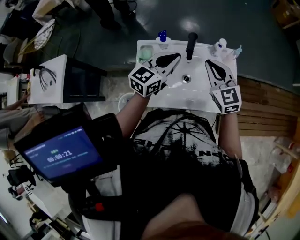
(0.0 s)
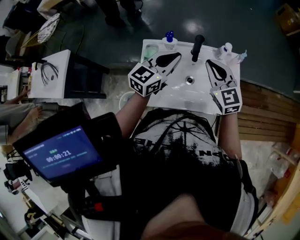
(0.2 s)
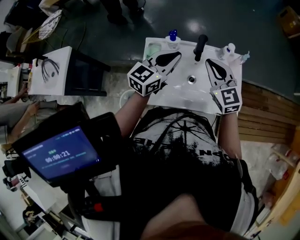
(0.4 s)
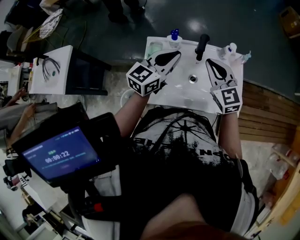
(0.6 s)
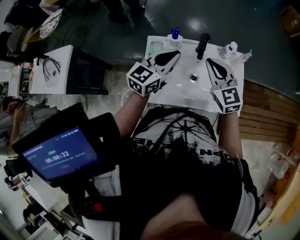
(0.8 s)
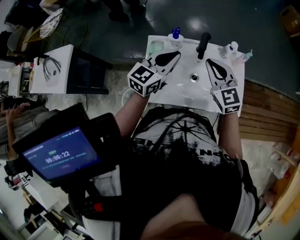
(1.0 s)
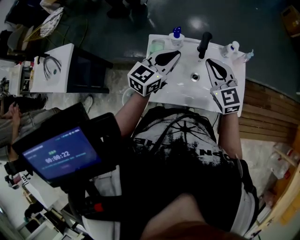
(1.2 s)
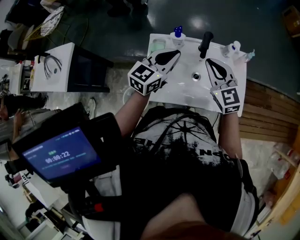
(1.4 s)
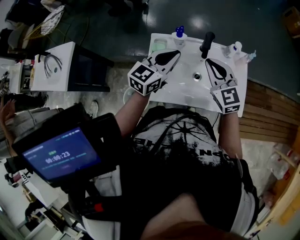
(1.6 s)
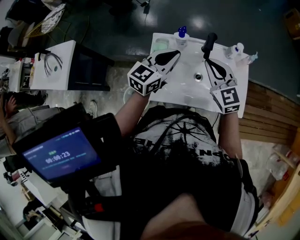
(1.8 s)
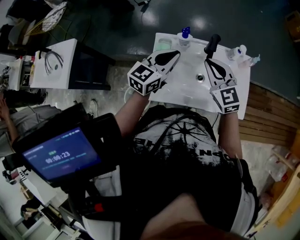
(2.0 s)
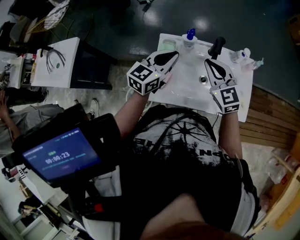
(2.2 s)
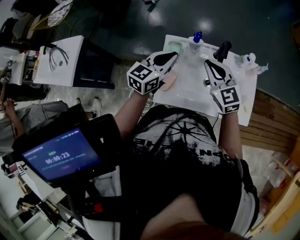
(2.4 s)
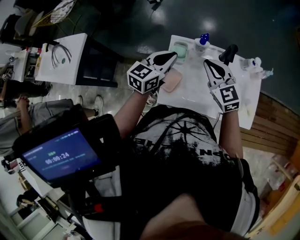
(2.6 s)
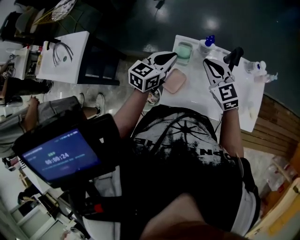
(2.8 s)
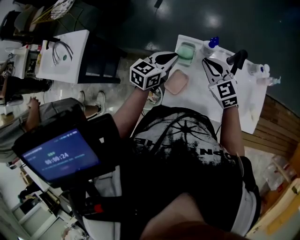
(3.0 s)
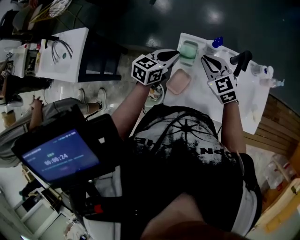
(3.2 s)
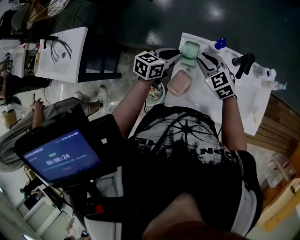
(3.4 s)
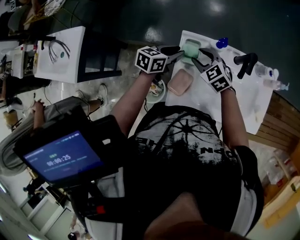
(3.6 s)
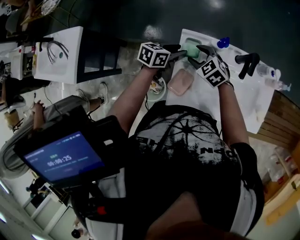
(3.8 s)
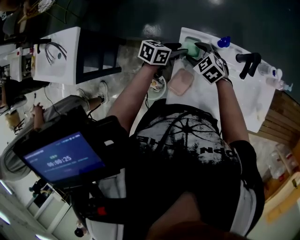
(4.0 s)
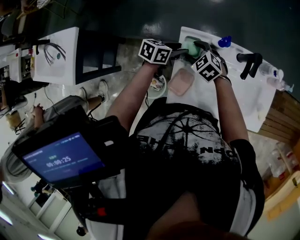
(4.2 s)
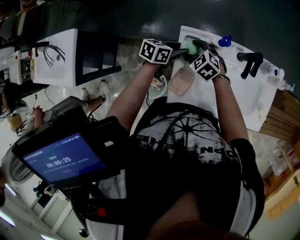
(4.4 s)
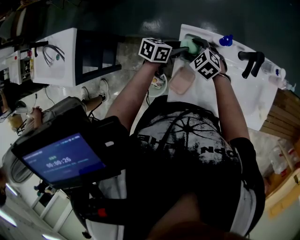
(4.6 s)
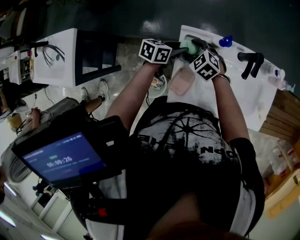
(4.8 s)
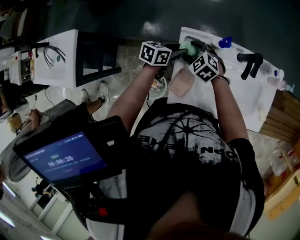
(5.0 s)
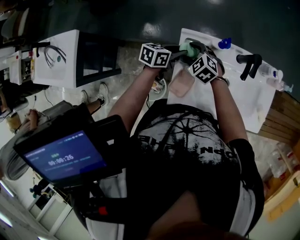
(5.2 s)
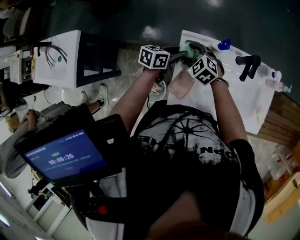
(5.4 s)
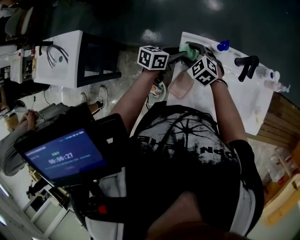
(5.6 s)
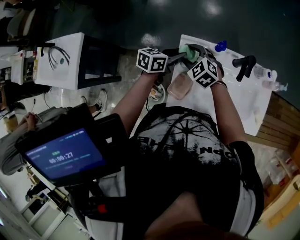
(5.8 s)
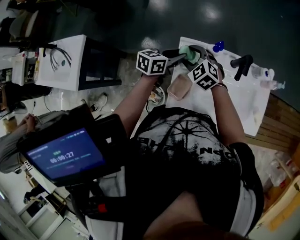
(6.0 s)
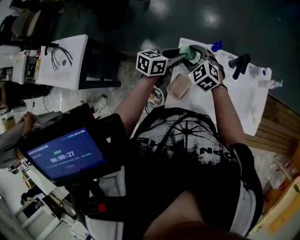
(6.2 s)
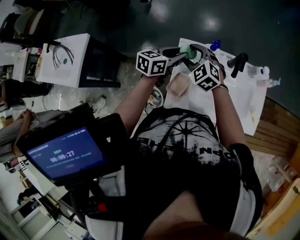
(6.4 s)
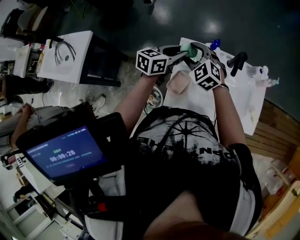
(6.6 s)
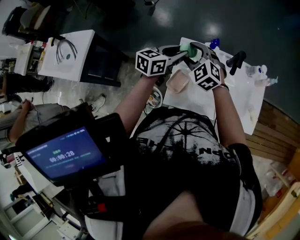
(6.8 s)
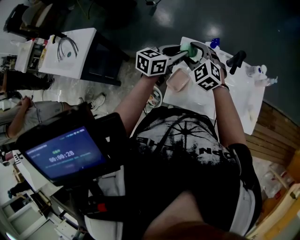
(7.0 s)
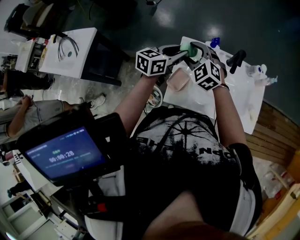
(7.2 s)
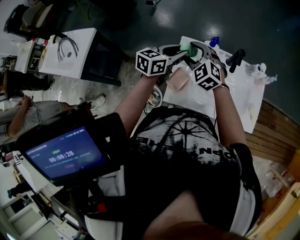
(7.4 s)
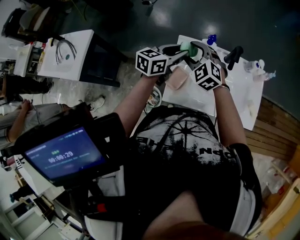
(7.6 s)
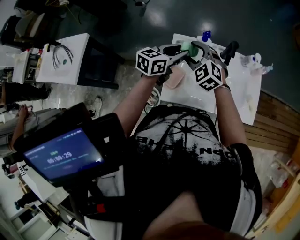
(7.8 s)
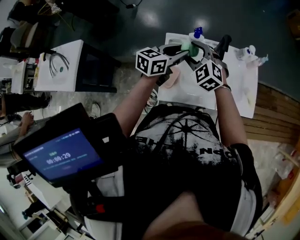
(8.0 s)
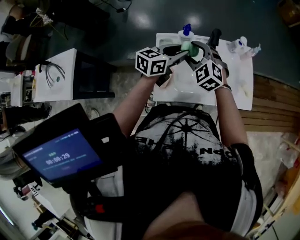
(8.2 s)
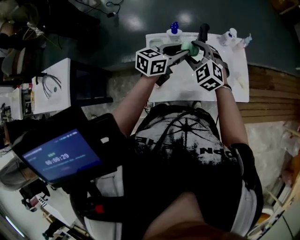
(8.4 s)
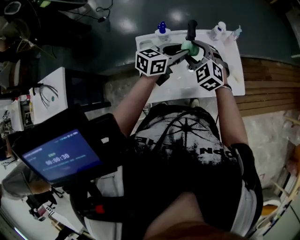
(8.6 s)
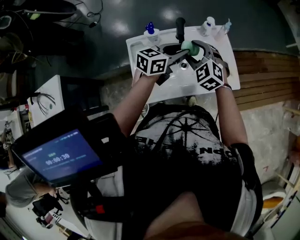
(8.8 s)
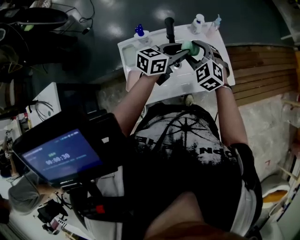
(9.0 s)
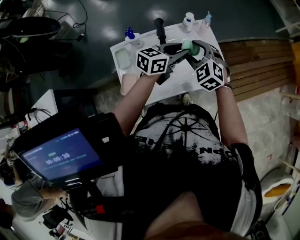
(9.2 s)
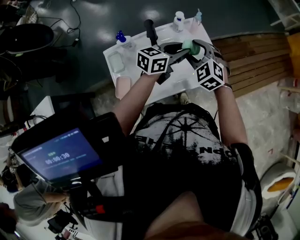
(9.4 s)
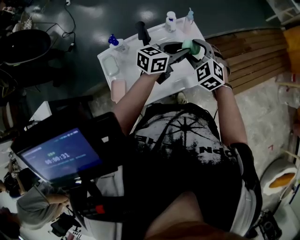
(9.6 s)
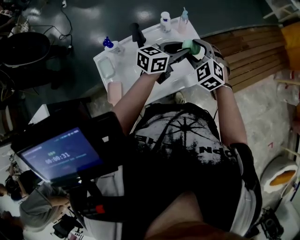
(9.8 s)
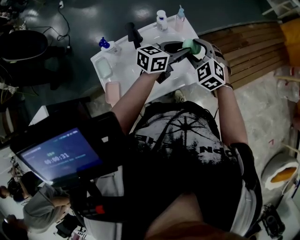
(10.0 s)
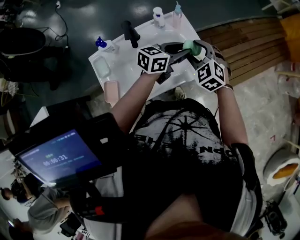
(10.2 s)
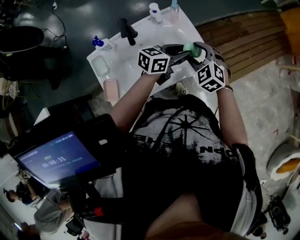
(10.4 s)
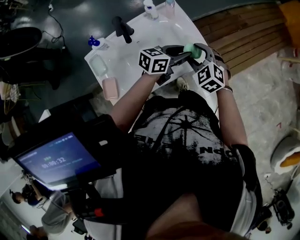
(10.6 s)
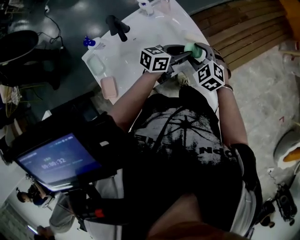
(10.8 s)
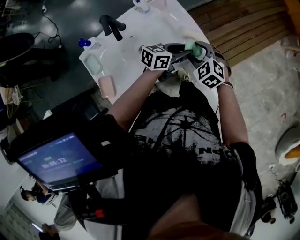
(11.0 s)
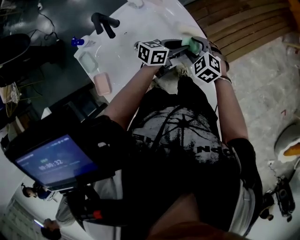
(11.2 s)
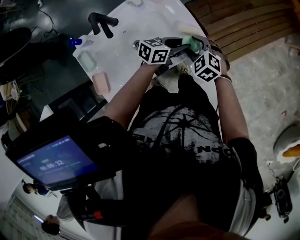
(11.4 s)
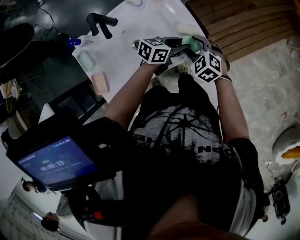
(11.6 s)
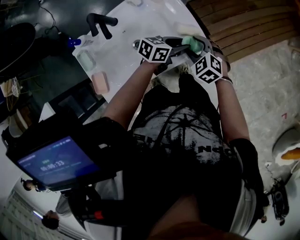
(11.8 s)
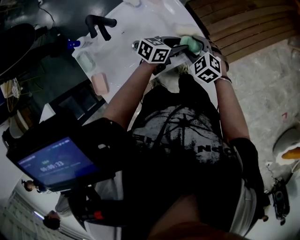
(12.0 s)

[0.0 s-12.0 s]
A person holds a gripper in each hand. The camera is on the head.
0.0 to 1.6 s: Both grippers travel together to the left, about 5 cm.
1.6 to 3.0 s: The grippers both shift to the left and downward by some 15 cm.
3.0 to 4.4 s: The left gripper travels downward and forward by some 15 cm, swivels some 30 degrees, and opens its fingers, while the right gripper travels downward and to the left by roughly 20 cm, changes its angle by about 30 degrees, and opens.
4.4 to 6.0 s: Both grippers travel together upward, about 10 cm.
6.0 to 7.6 s: Both grippers travel together upward and backward, approximately 10 cm.
7.6 to 9.0 s: The right gripper shifts by about 25 cm, and swivels some 30 degrees, while the left gripper shifts by roughly 25 cm, and changes its angle by some 30 degrees.
9.0 to 10.4 s: The grippers both shift to the right by approximately 15 cm.
10.4 to 12.0 s: The two grippers go about 15 cm downward and to the right.

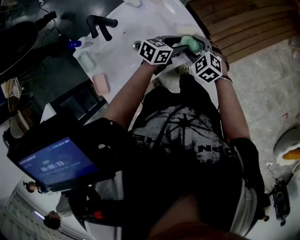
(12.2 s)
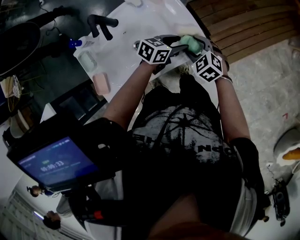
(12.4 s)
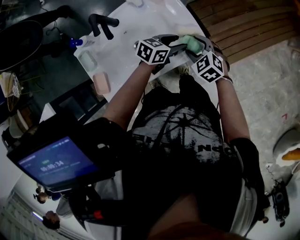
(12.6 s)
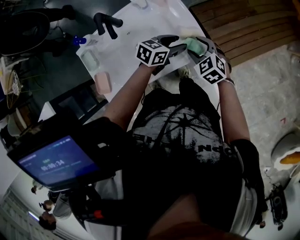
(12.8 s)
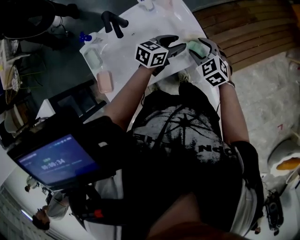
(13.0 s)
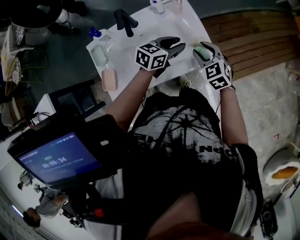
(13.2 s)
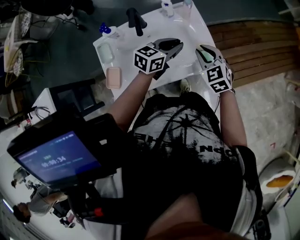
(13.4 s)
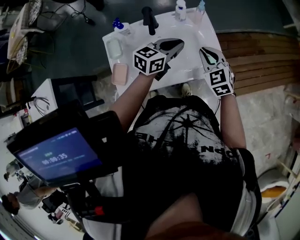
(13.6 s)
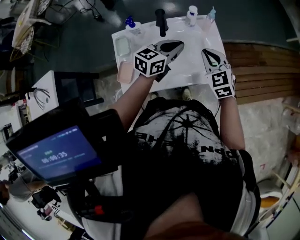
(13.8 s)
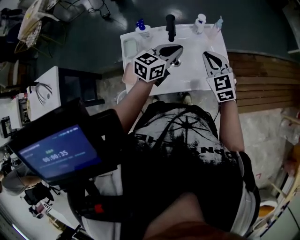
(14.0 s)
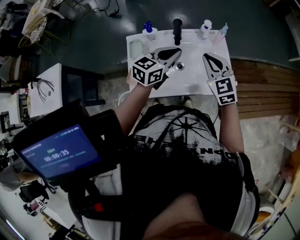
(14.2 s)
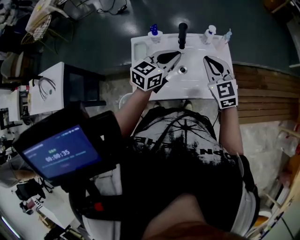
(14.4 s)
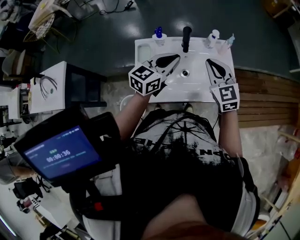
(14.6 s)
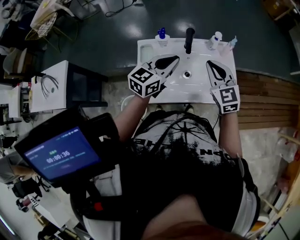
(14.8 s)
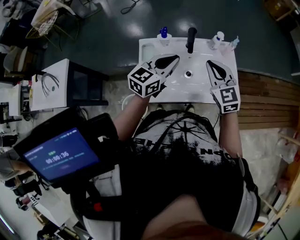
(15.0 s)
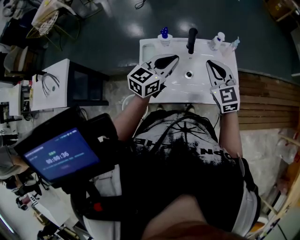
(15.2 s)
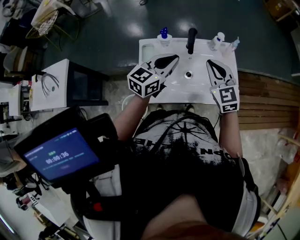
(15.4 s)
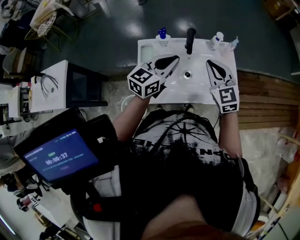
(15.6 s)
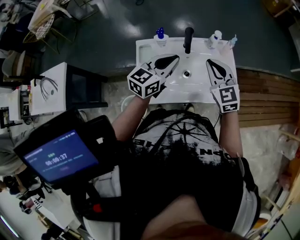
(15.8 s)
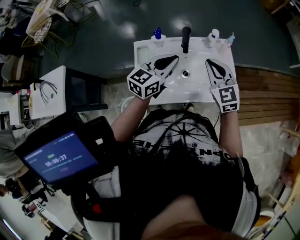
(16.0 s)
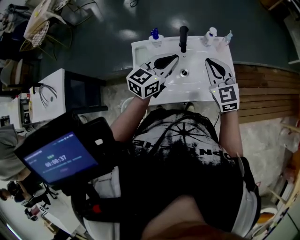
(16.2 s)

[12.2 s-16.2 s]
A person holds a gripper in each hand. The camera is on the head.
12.2 to 13.6 s: The right gripper moves upward and to the left, roughly 15 cm, and closes up, while the left gripper moves to the left and upward, roughly 20 cm, changes its angle by roughly 30 degrees, and closes.
13.6 to 14.8 s: Both grippers travel together to the left and upward, some 15 cm. The left gripper swivels approximately 20 degrees.
14.8 to 16.2 s: The grippers move only a little.

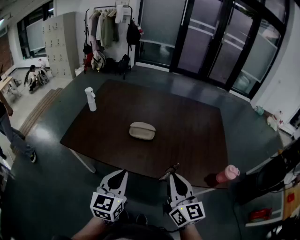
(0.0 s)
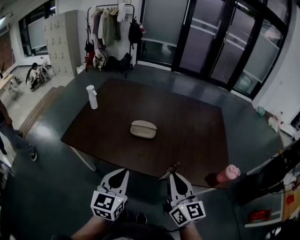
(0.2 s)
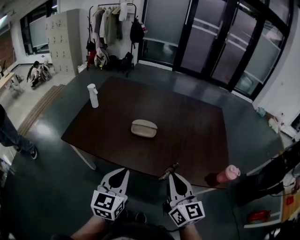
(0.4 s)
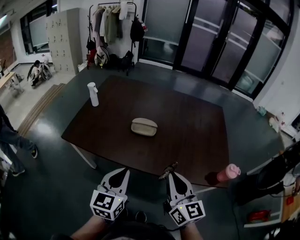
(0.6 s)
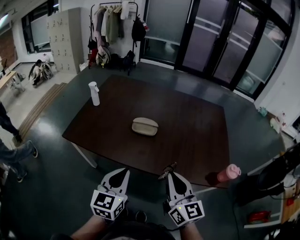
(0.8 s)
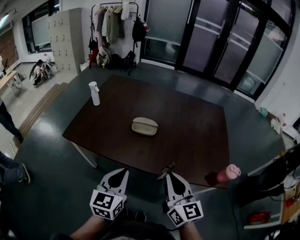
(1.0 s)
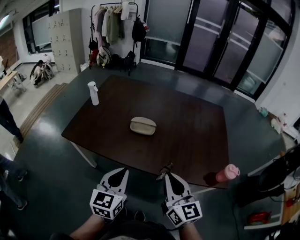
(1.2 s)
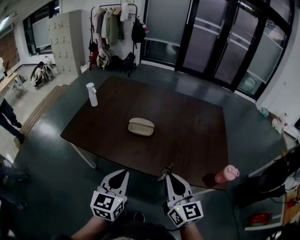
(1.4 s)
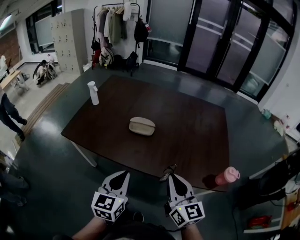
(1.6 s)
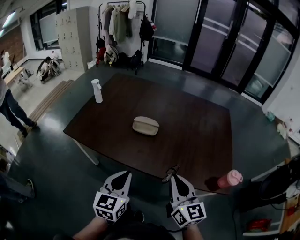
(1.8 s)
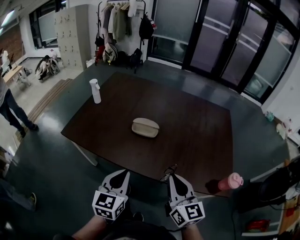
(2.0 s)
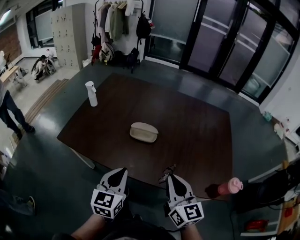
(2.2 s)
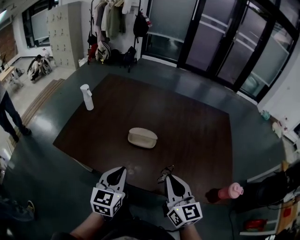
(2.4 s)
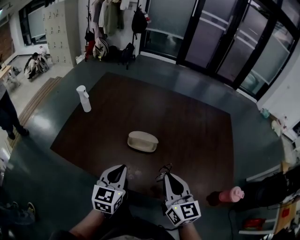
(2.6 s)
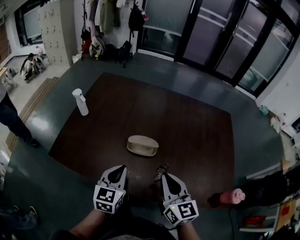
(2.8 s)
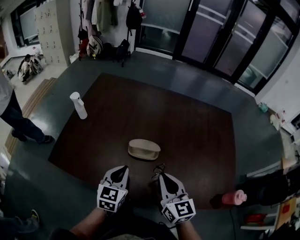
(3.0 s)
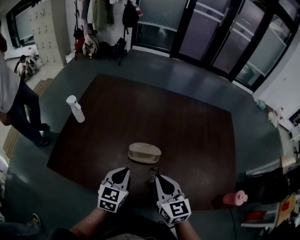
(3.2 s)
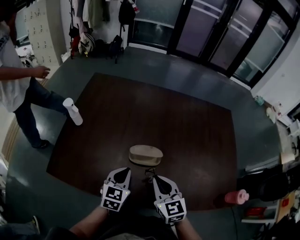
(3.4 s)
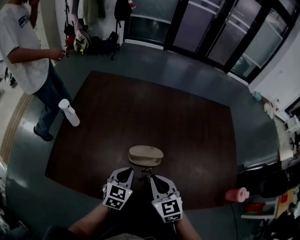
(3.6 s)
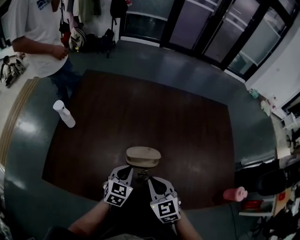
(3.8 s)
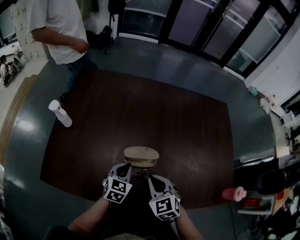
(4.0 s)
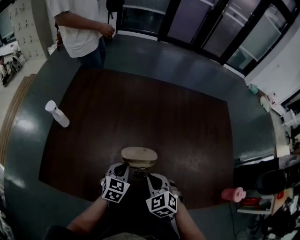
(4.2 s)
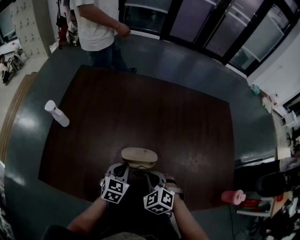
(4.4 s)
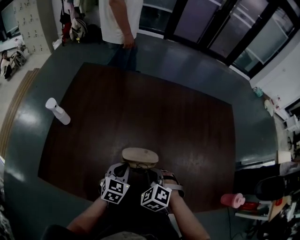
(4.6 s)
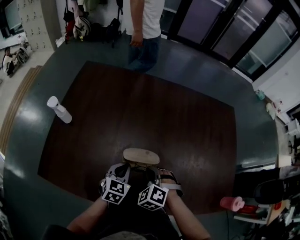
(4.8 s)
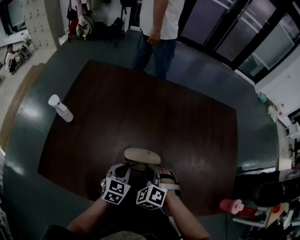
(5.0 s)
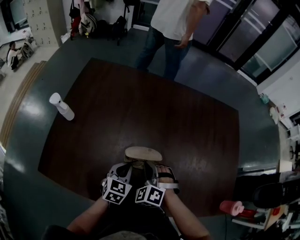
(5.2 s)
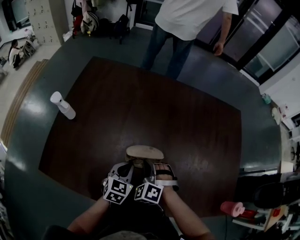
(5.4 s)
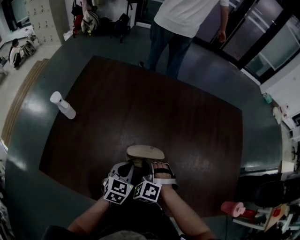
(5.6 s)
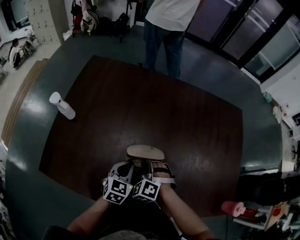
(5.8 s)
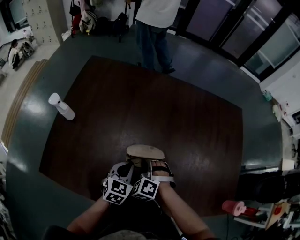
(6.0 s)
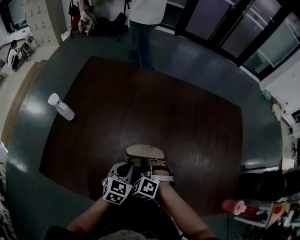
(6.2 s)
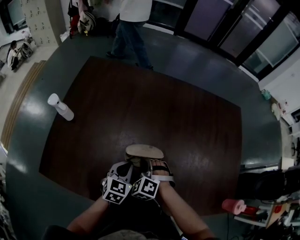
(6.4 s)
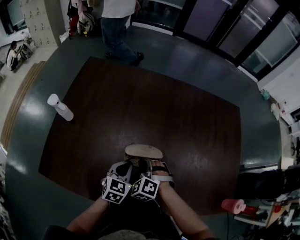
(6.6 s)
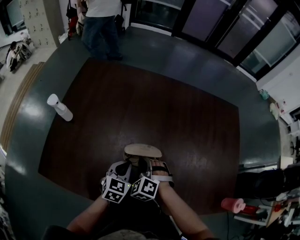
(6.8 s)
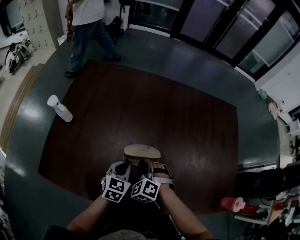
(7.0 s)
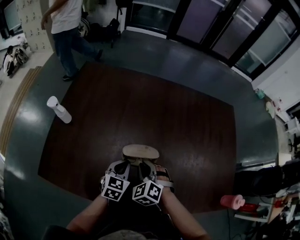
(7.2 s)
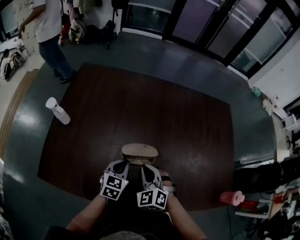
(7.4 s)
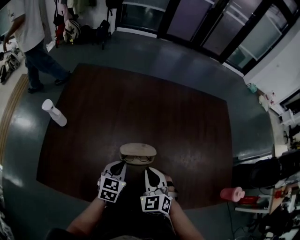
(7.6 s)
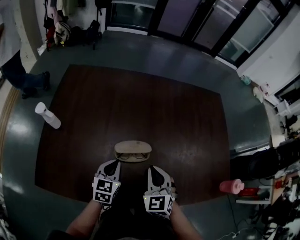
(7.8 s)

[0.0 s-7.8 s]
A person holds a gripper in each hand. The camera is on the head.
0.0 to 1.6 s: There are only small adjustments of the grippers.
1.6 to 3.2 s: The left gripper shifts roughly 25 cm forward, while the right gripper is displaced forward and to the left by roughly 25 cm.
3.2 to 4.6 s: The grippers both shift downward and forward by roughly 15 cm. The right gripper angles its fingers downward, by about 40 degrees.
4.6 to 6.2 s: The right gripper is displaced to the left by approximately 5 cm.
6.2 to 7.8 s: The right gripper heads upward, to the right and backward, covering some 15 cm, and rolls clockwise, seen from behind, by about 40 degrees.
